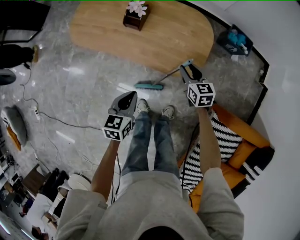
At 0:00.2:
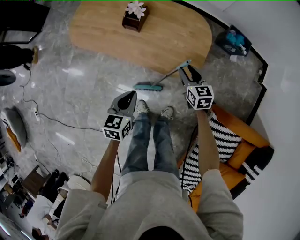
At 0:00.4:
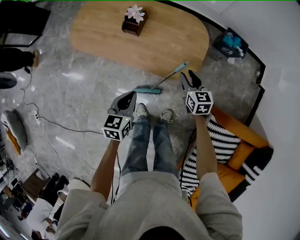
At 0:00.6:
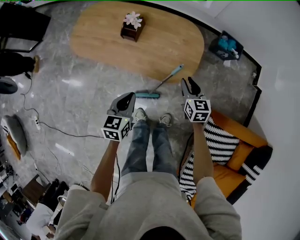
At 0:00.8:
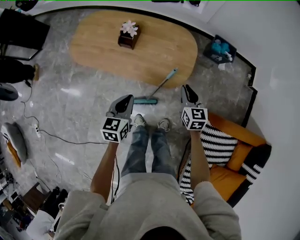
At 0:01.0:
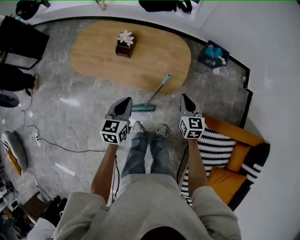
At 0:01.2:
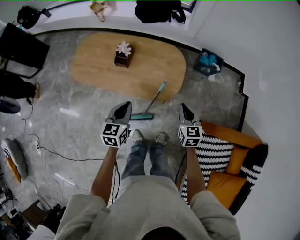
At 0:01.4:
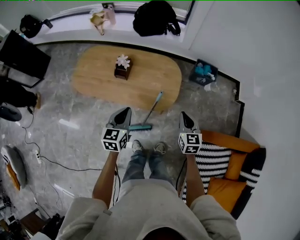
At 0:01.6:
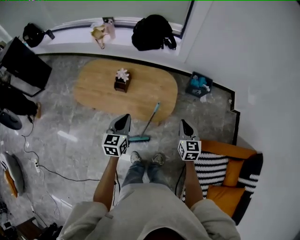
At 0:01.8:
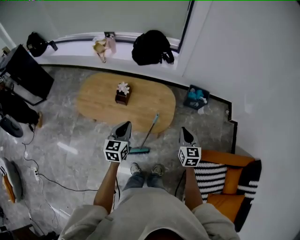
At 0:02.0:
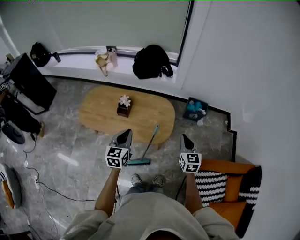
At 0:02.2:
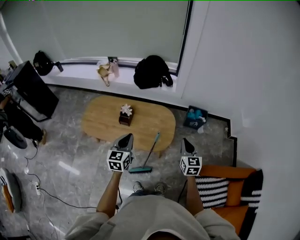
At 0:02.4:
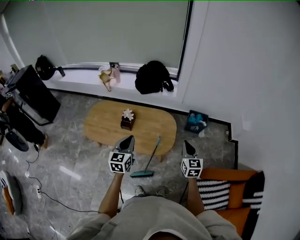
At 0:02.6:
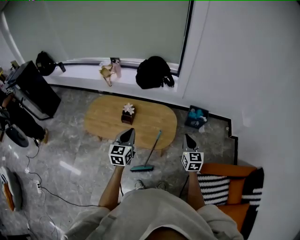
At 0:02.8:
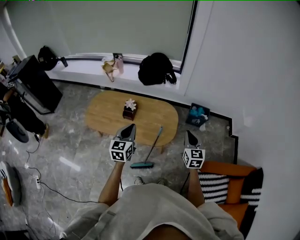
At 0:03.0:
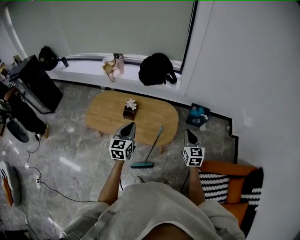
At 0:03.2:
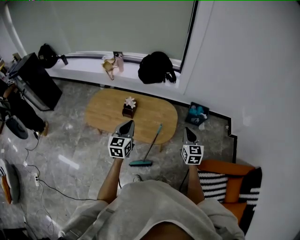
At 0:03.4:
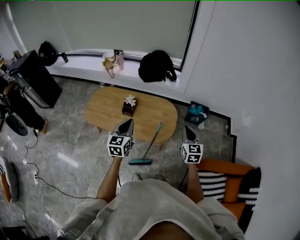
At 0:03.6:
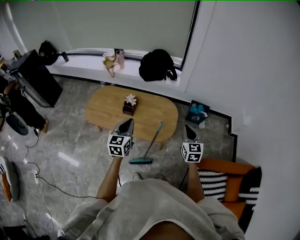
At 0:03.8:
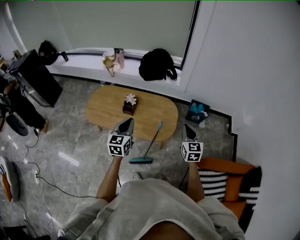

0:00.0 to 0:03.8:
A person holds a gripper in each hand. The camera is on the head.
0:00.0 to 0:01.2: The left gripper travels upward by roughly 10 cm. The right gripper shifts some 20 cm upward, backward and to the right, swivels approximately 20 degrees, and closes.
0:01.2 to 0:02.6: The two grippers go about 15 cm upward.
0:02.6 to 0:03.8: There are only small adjustments of the grippers.

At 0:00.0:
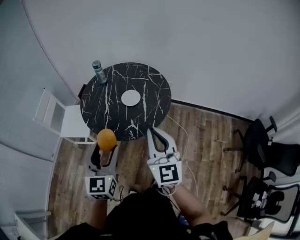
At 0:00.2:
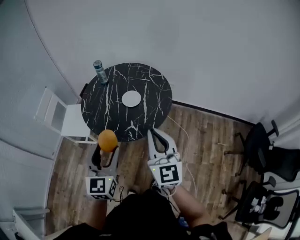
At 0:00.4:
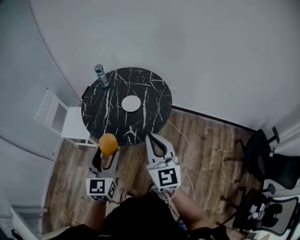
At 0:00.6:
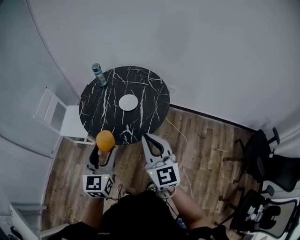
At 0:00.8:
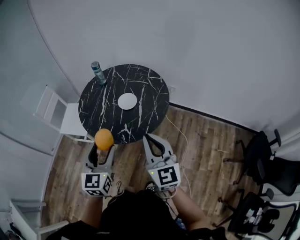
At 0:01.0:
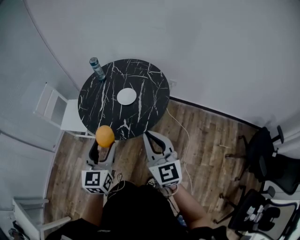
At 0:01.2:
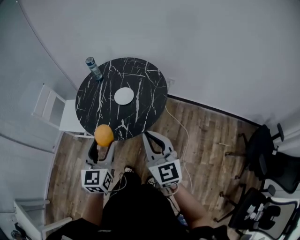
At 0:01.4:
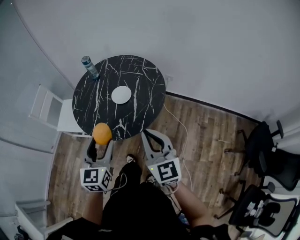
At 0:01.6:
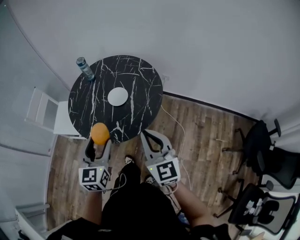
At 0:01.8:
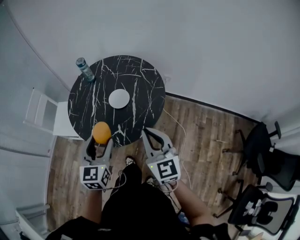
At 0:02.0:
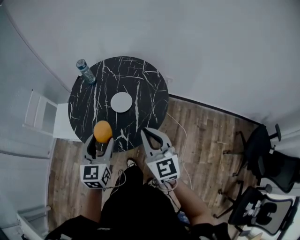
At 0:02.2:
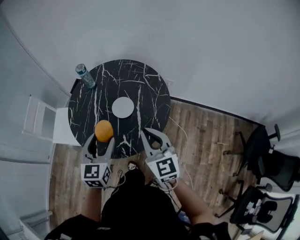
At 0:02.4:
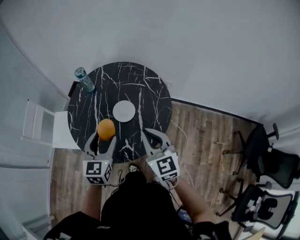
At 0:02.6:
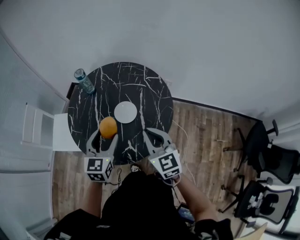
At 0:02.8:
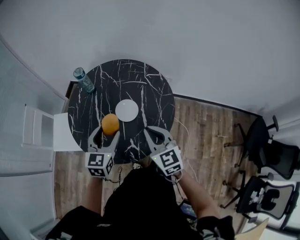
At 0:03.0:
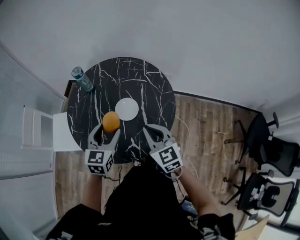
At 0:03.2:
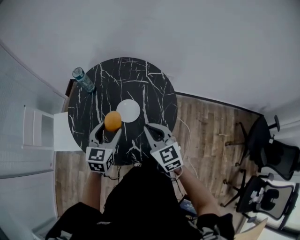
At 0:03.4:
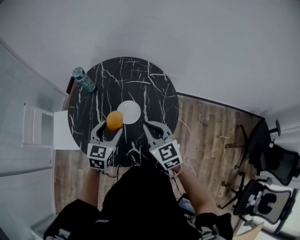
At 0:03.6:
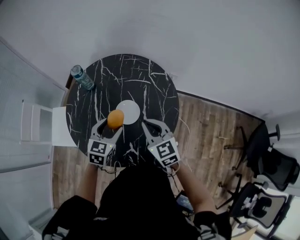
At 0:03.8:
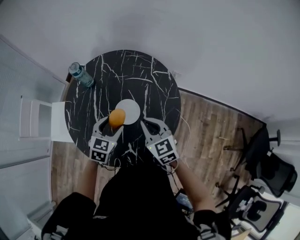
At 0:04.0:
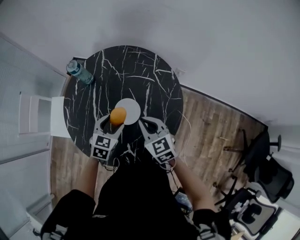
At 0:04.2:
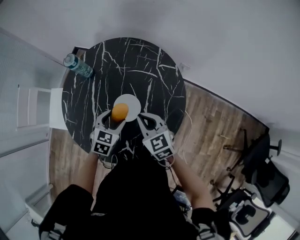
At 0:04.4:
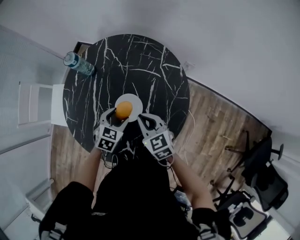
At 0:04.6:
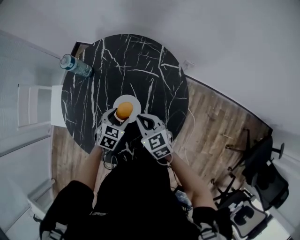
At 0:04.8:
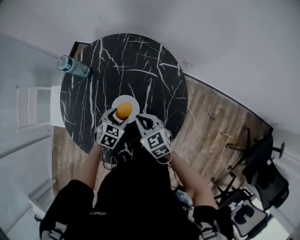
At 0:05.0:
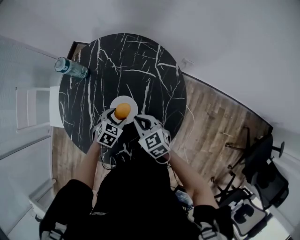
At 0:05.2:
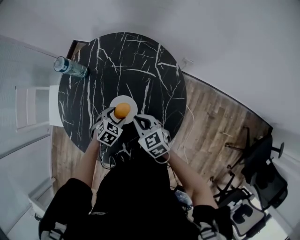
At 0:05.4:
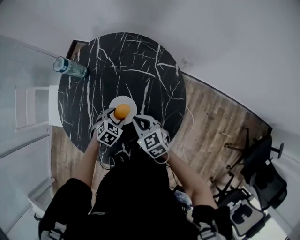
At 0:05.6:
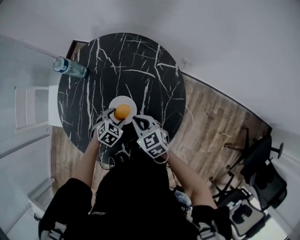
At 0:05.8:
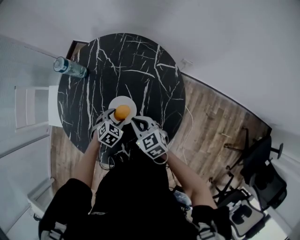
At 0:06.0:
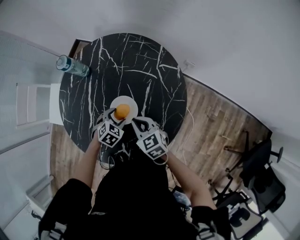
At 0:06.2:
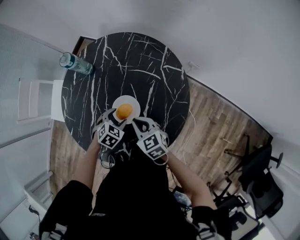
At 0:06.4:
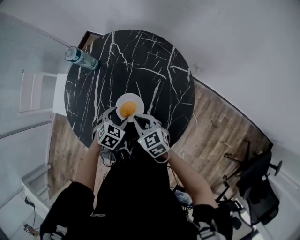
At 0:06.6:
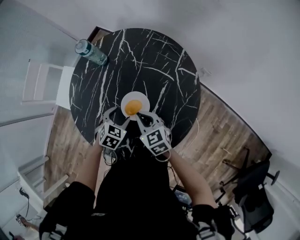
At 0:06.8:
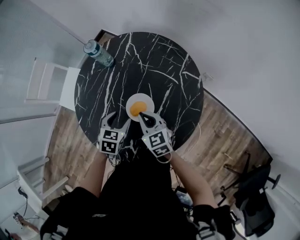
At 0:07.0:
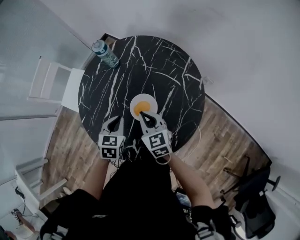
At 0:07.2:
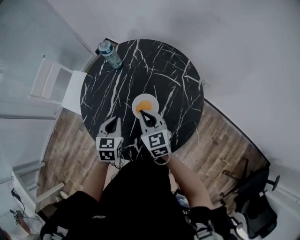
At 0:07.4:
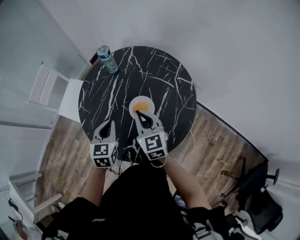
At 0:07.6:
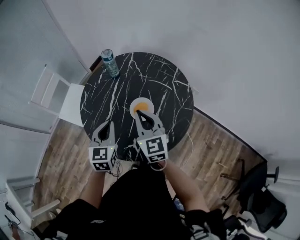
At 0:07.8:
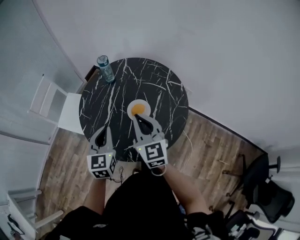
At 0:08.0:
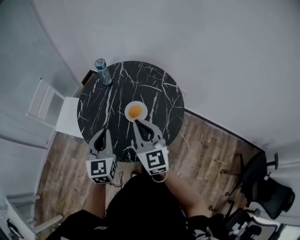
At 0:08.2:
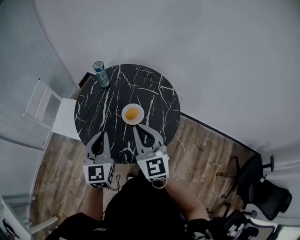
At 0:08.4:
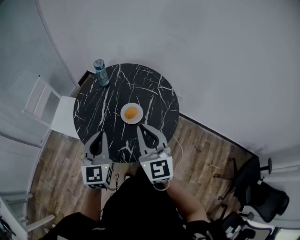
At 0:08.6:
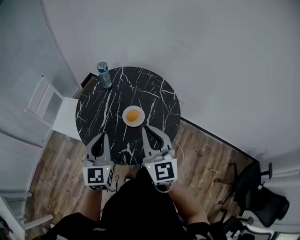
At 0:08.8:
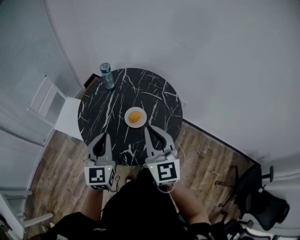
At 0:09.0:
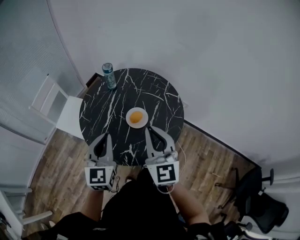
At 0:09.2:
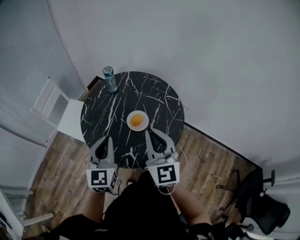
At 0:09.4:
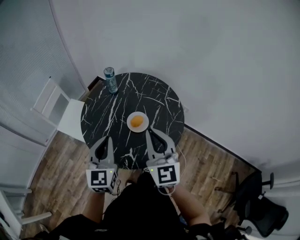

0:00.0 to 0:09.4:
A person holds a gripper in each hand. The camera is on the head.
0:00.0 to 0:01.6: The right gripper heads to the right, downward and forward, covering roughly 15 cm; the left gripper is displaced to the right, forward and downward by approximately 15 cm.
0:01.6 to 0:03.2: The left gripper moves forward, some 25 cm, and swivels approximately 20 degrees; the right gripper shifts approximately 25 cm forward, to the left and downward.
0:03.2 to 0:04.8: The two grippers go some 25 cm downward and forward. The right gripper swivels roughly 20 degrees; the left gripper tips its fingers downward by some 30 degrees.
0:04.8 to 0:06.2: There are only small adjustments of the grippers.
0:06.2 to 0:07.8: The left gripper moves upward, to the left and backward, approximately 35 cm, tips its fingers upward by roughly 50 degrees, and closes its fingers, while the right gripper goes approximately 20 cm upward, and rotates approximately 40 degrees.
0:07.8 to 0:09.4: The two grippers go about 10 cm upward and backward.

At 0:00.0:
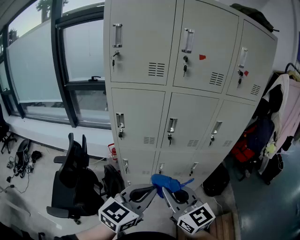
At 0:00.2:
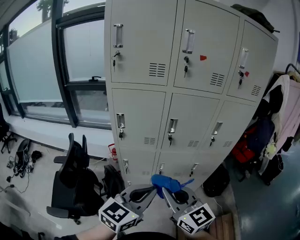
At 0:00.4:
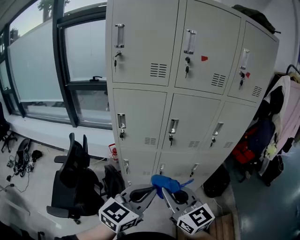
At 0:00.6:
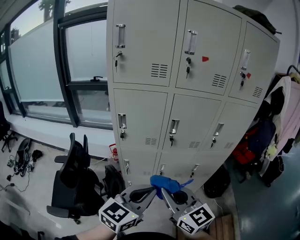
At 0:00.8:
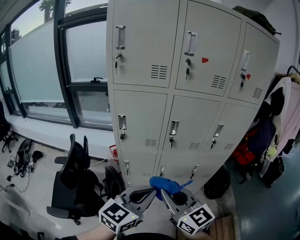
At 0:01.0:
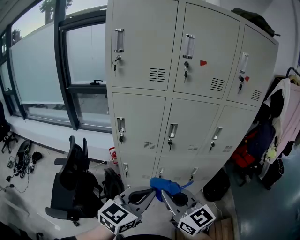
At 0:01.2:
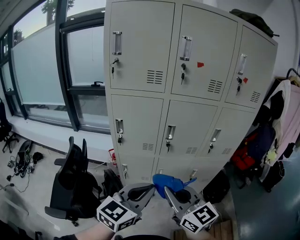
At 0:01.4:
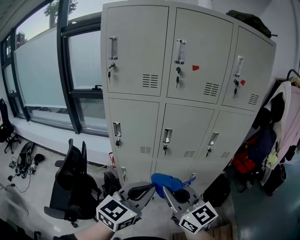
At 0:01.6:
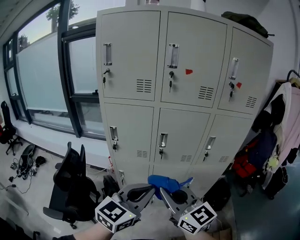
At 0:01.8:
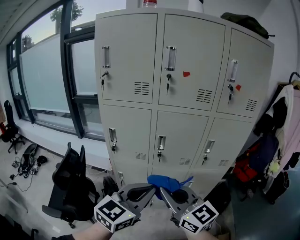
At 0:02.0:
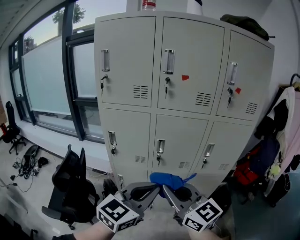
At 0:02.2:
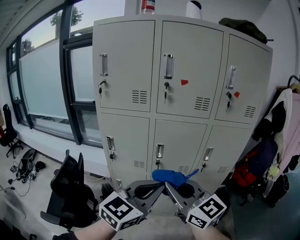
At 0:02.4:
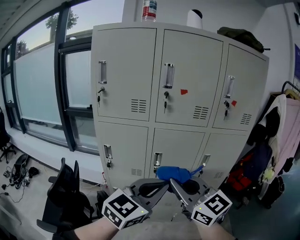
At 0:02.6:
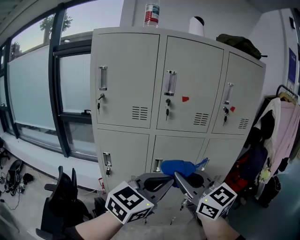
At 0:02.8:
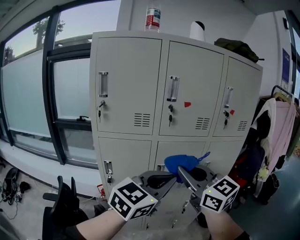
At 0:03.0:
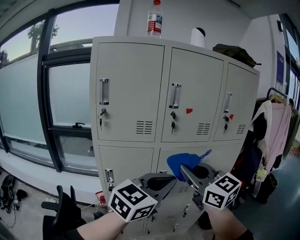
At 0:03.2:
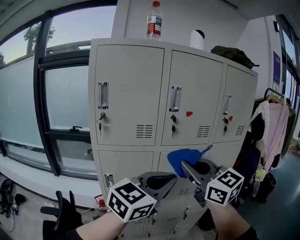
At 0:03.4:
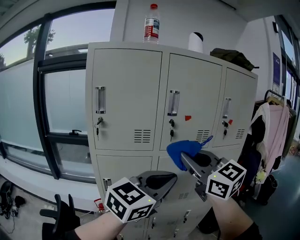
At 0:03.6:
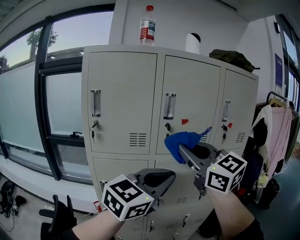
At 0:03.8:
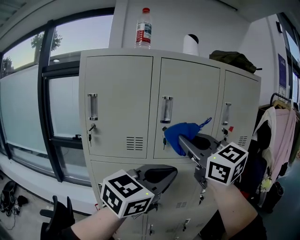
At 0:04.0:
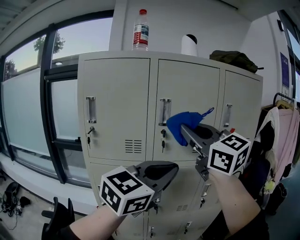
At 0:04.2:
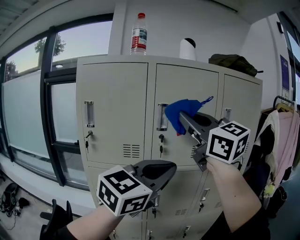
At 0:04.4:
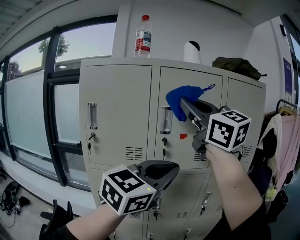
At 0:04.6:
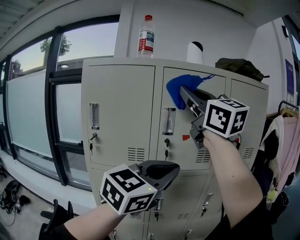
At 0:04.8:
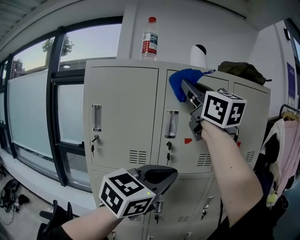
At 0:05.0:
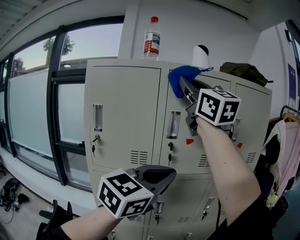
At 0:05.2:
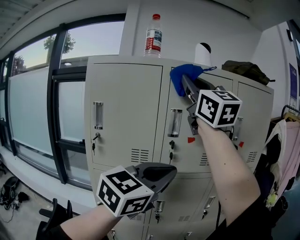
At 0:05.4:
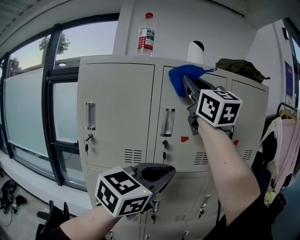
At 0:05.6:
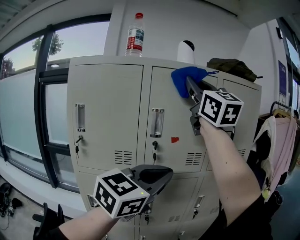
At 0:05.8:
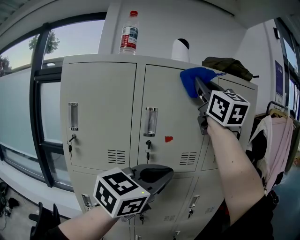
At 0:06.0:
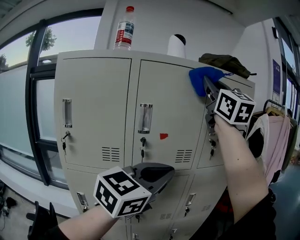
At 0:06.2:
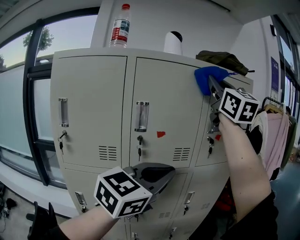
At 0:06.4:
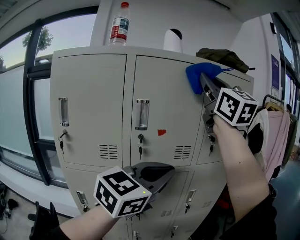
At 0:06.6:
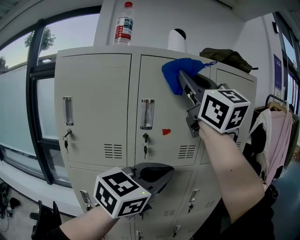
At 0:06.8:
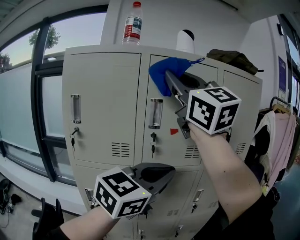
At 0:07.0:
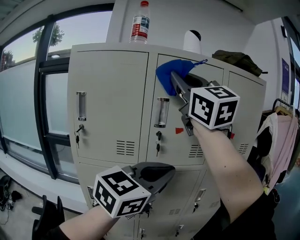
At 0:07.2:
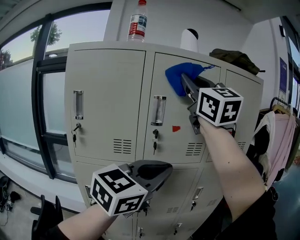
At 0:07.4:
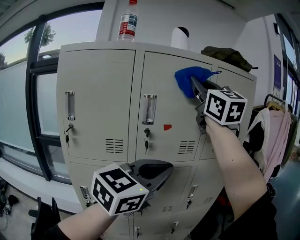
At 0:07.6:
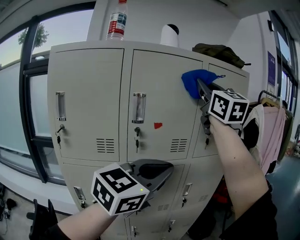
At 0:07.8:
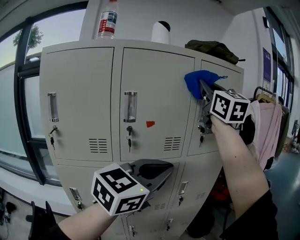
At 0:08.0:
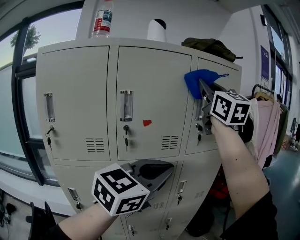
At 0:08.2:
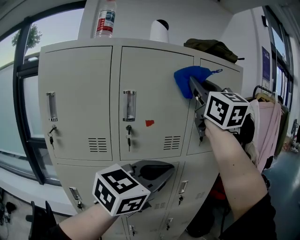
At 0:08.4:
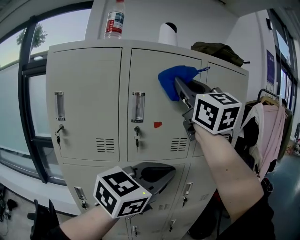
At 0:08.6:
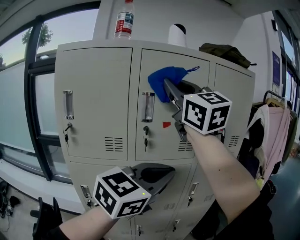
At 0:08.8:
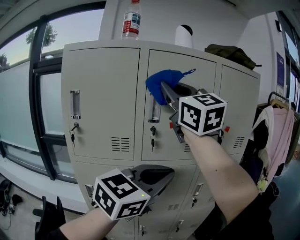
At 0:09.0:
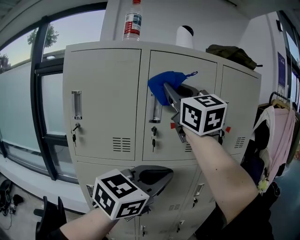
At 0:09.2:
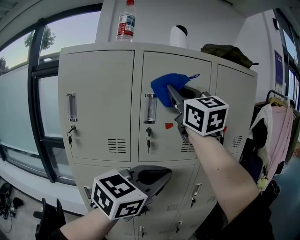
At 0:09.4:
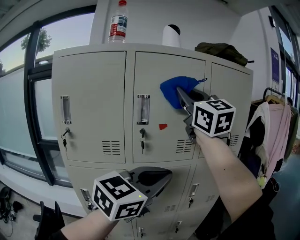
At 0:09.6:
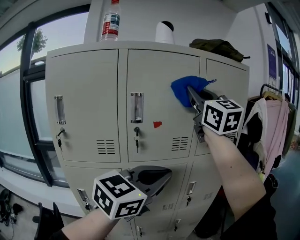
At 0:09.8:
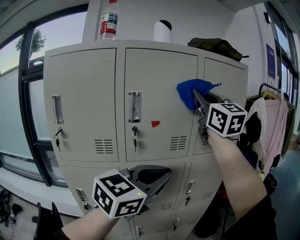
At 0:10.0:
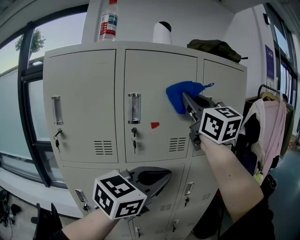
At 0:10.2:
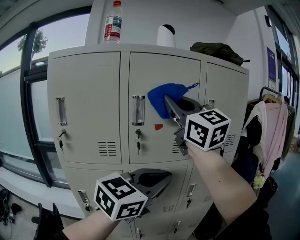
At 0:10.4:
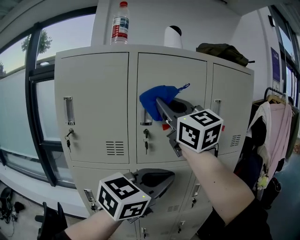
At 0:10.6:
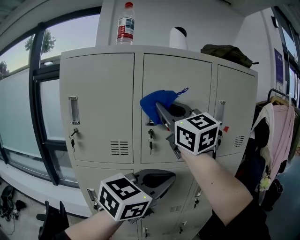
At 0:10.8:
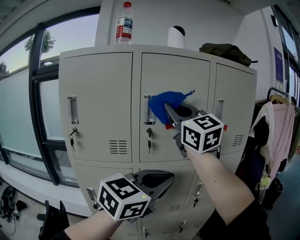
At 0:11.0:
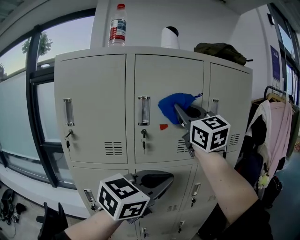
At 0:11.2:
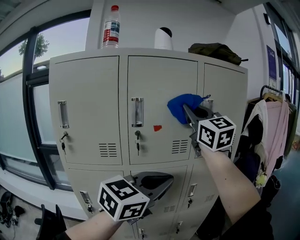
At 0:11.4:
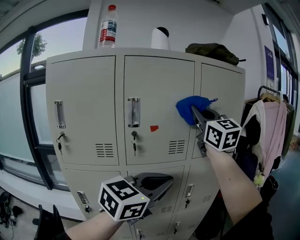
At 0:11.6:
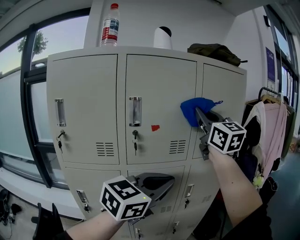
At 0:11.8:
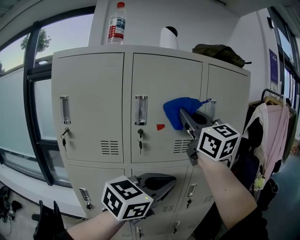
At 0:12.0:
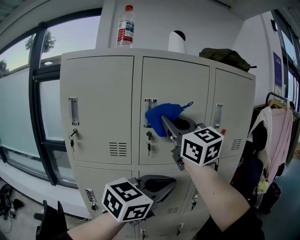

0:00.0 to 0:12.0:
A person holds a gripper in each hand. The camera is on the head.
0:00.0 to 0:01.6: The grippers both shift to the right by roughly 5 cm.
0:01.6 to 0:03.0: Both grippers travel together upward and forward, some 20 cm. The left gripper rotates roughly 20 degrees.
0:03.0 to 0:04.4: The left gripper moves upward and forward, roughly 15 cm, while the right gripper travels upward by some 30 cm, and changes its angle by roughly 20 degrees.
0:04.4 to 0:06.0: The right gripper heads to the right, forward and upward, covering about 20 cm, and swivels some 30 degrees, while the left gripper shifts by roughly 5 cm.
0:06.0 to 0:07.6: The right gripper goes to the left and returns, approximately 15 cm each way.
0:07.6 to 0:09.0: The right gripper is displaced to the left and backward by some 15 cm.
0:09.0 to 0:10.4: The right gripper reaches roughly 15 cm to the right, then returns.
0:10.4 to 0:12.0: The right gripper reaches some 15 cm to the right, then returns.
